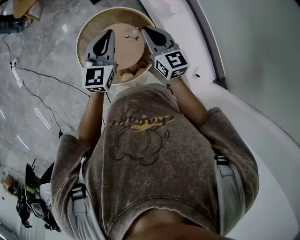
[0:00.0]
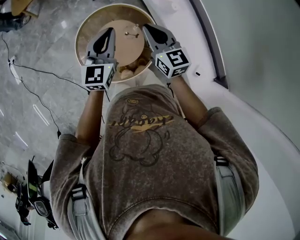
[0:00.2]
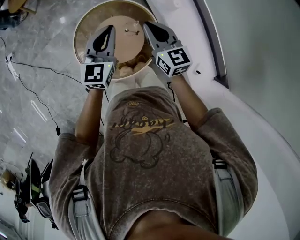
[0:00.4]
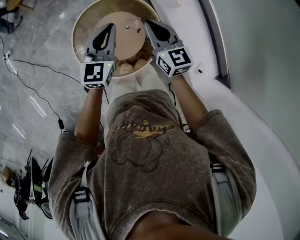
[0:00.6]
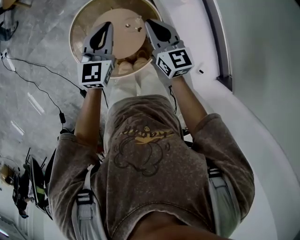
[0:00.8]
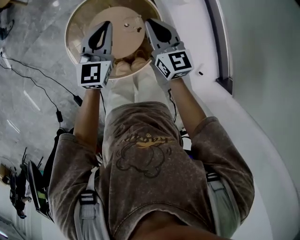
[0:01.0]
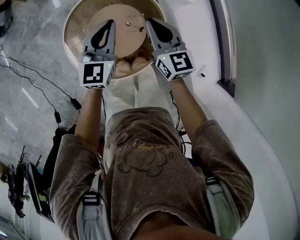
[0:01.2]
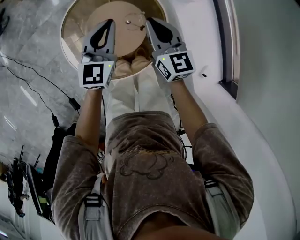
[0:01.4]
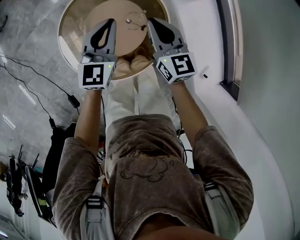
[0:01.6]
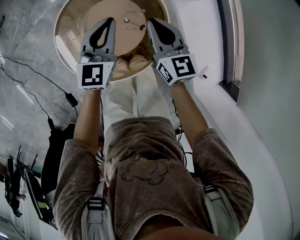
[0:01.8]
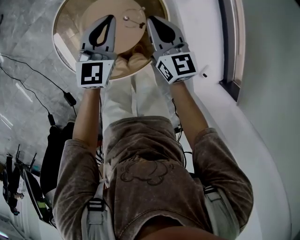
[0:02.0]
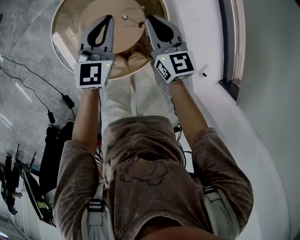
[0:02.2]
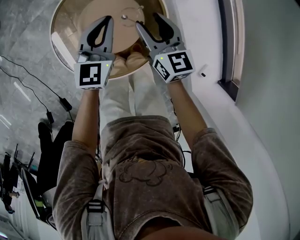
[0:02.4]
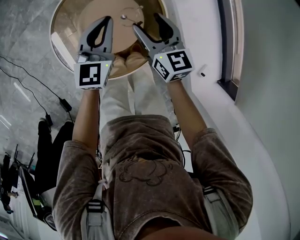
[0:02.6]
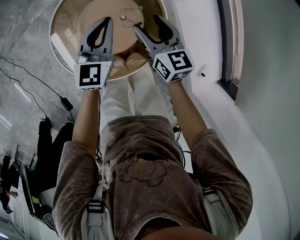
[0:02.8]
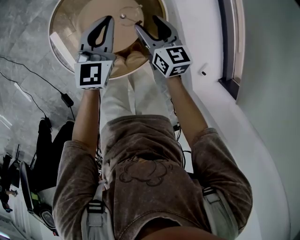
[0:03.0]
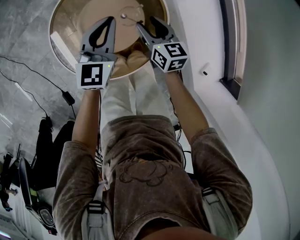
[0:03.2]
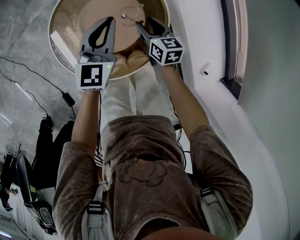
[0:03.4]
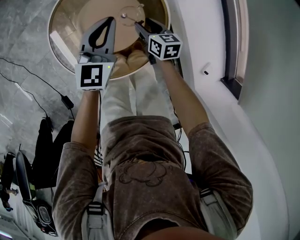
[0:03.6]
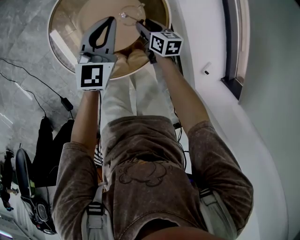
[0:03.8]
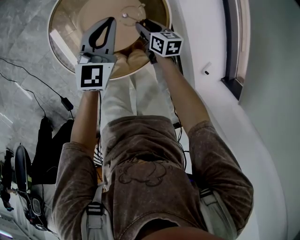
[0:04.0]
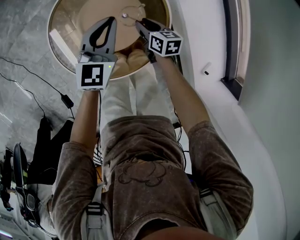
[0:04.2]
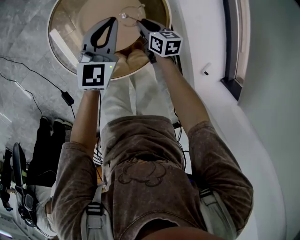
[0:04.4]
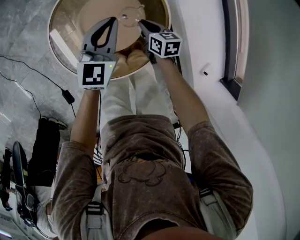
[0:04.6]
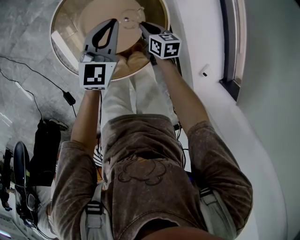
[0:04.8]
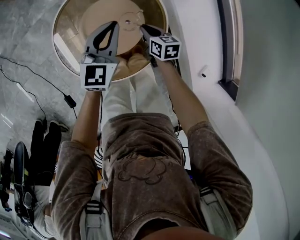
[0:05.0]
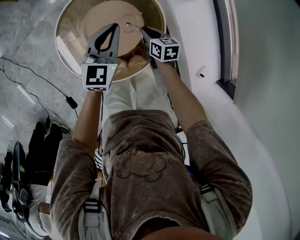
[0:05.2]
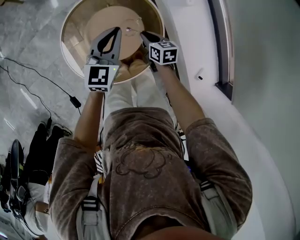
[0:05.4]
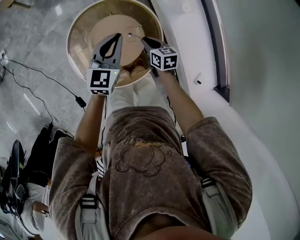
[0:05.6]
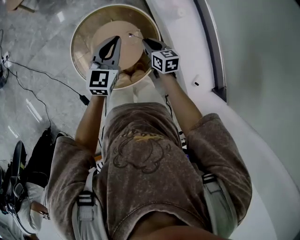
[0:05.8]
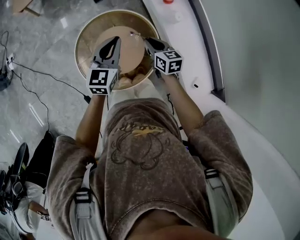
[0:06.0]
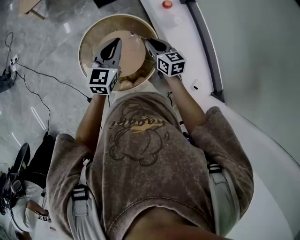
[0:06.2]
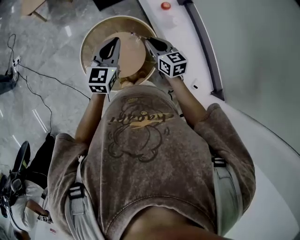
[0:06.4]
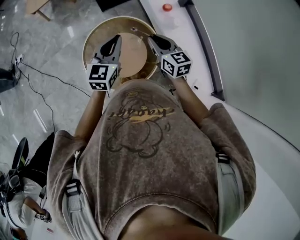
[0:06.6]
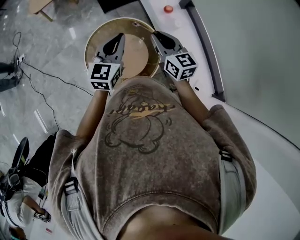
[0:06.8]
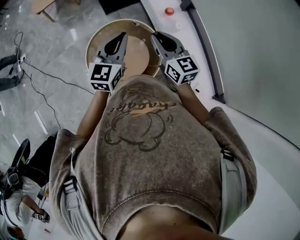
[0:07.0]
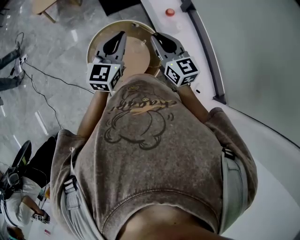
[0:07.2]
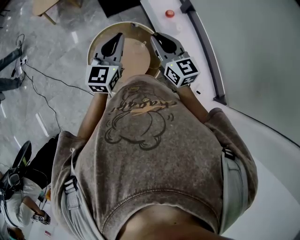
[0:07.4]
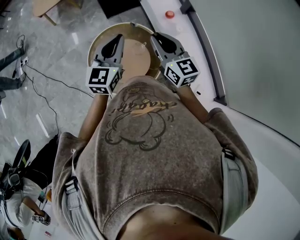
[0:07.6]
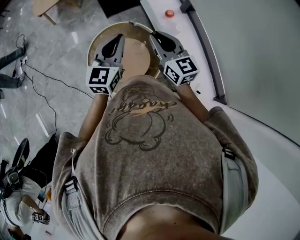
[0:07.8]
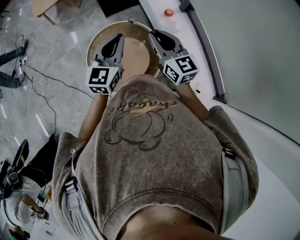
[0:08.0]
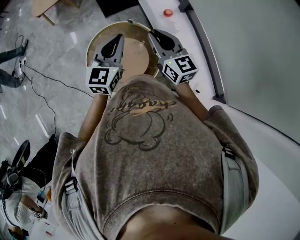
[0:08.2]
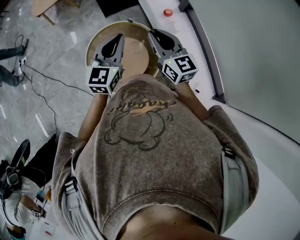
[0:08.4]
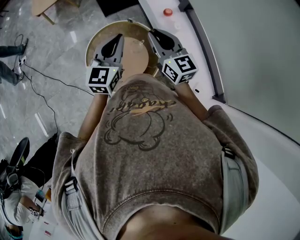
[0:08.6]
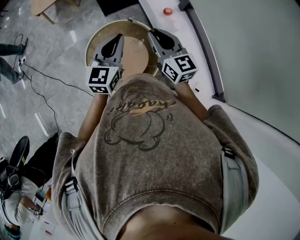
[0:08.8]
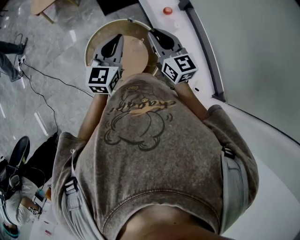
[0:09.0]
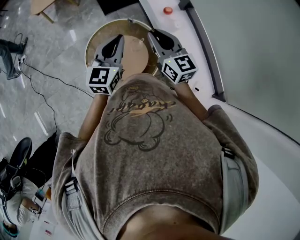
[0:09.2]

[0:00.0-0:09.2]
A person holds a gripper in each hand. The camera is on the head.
0:00.0 to 0:01.6: The grippers both shift downward by about 20 cm.
0:01.6 to 0:03.0: The right gripper travels downward by about 10 cm, and opens its fingers.
0:03.0 to 0:04.6: The right gripper moves downward, some 15 cm, swivels approximately 20 degrees, and closes its fingers.
0:04.6 to 0:06.2: The grippers both shift upward by about 25 cm. The right gripper rotates about 20 degrees.
0:06.2 to 0:07.6: The right gripper shifts about 20 cm upward, and turns by some 20 degrees; the left gripper moves upward, approximately 10 cm.
0:07.6 to 0:09.2: The grippers stay close to where they were, moving slightly.

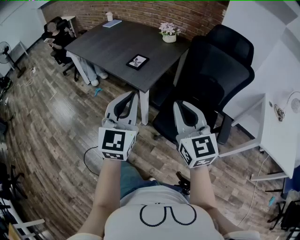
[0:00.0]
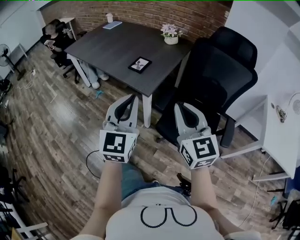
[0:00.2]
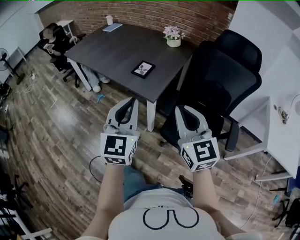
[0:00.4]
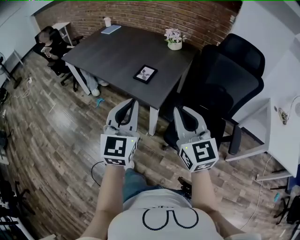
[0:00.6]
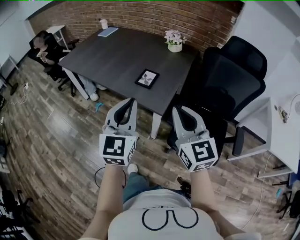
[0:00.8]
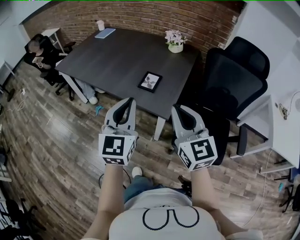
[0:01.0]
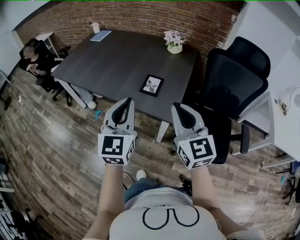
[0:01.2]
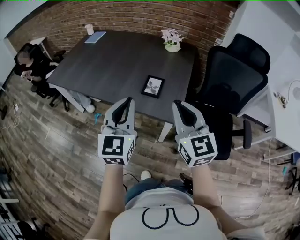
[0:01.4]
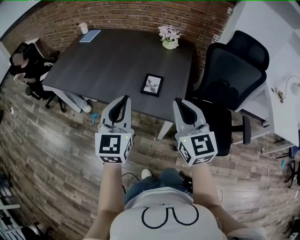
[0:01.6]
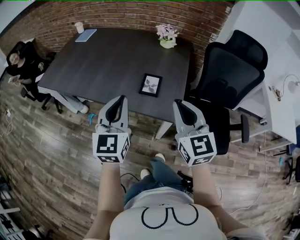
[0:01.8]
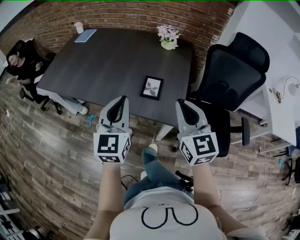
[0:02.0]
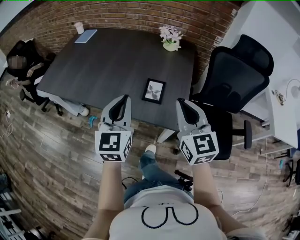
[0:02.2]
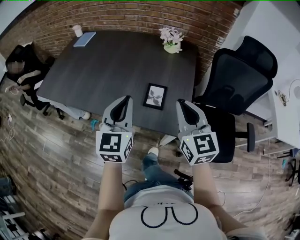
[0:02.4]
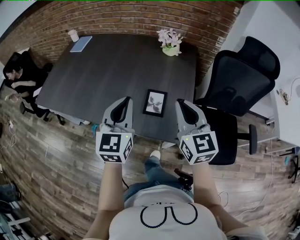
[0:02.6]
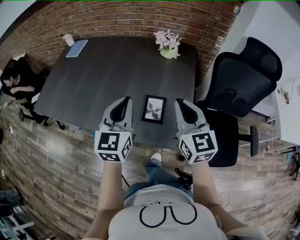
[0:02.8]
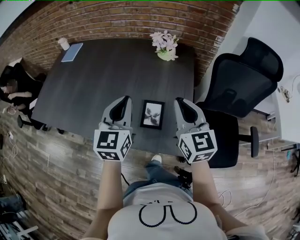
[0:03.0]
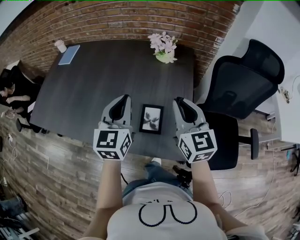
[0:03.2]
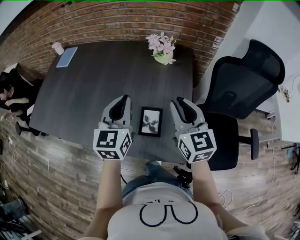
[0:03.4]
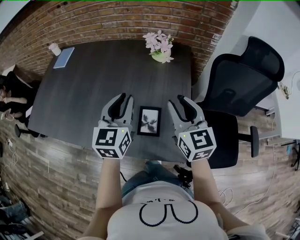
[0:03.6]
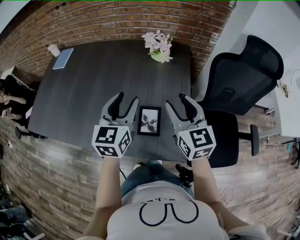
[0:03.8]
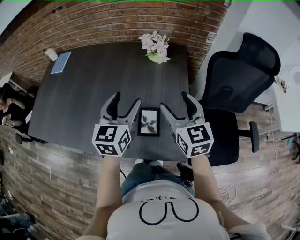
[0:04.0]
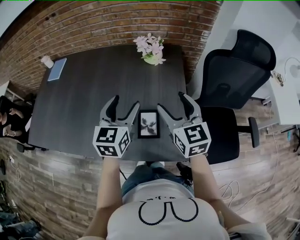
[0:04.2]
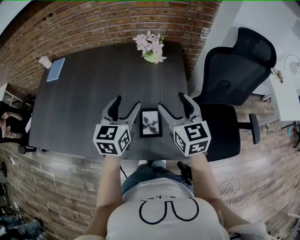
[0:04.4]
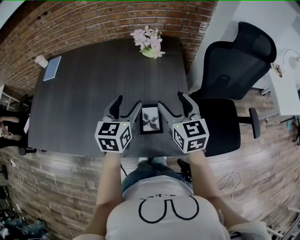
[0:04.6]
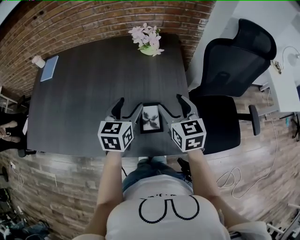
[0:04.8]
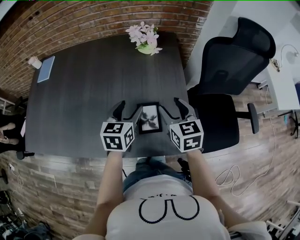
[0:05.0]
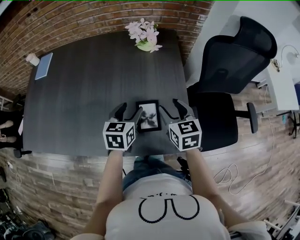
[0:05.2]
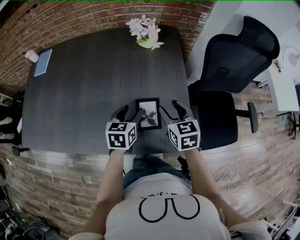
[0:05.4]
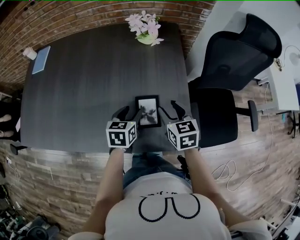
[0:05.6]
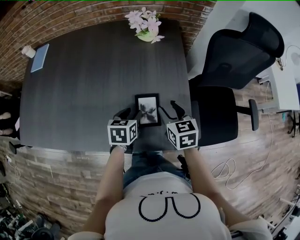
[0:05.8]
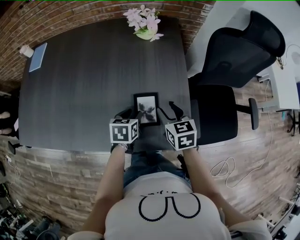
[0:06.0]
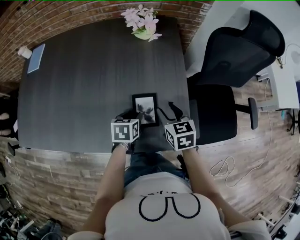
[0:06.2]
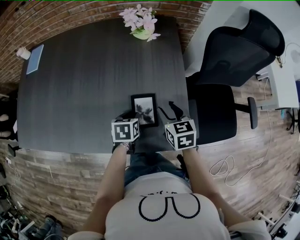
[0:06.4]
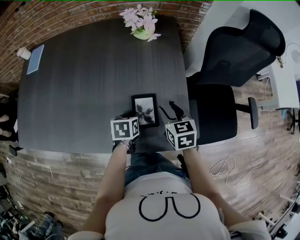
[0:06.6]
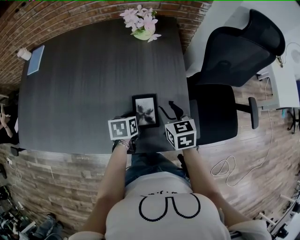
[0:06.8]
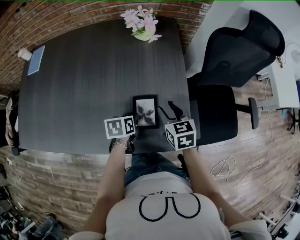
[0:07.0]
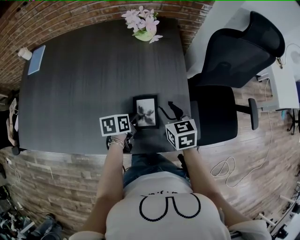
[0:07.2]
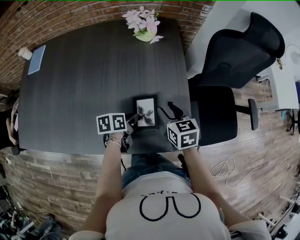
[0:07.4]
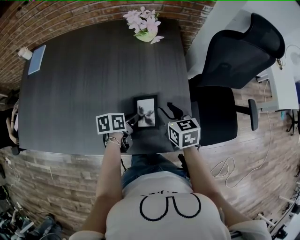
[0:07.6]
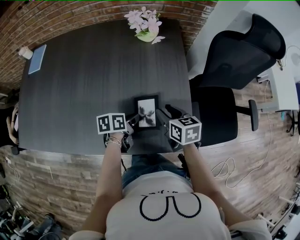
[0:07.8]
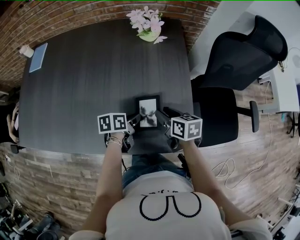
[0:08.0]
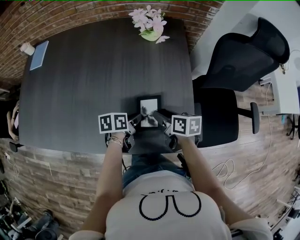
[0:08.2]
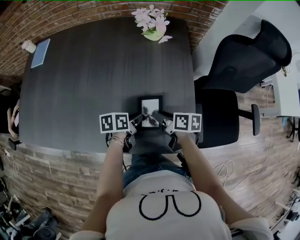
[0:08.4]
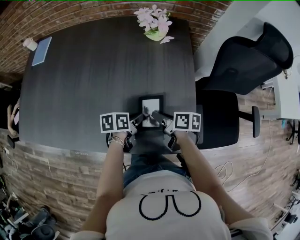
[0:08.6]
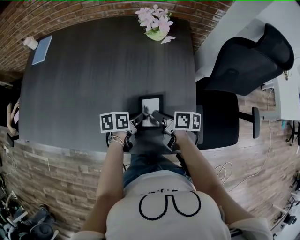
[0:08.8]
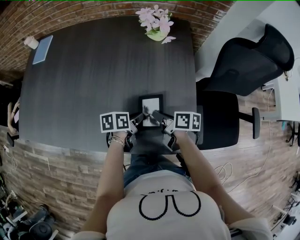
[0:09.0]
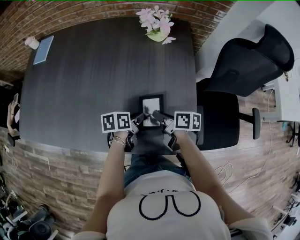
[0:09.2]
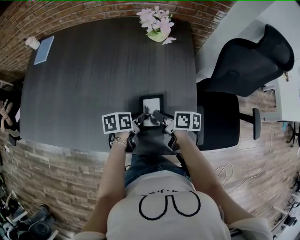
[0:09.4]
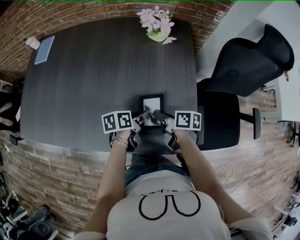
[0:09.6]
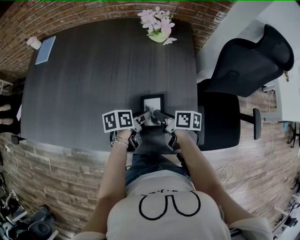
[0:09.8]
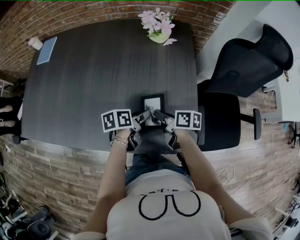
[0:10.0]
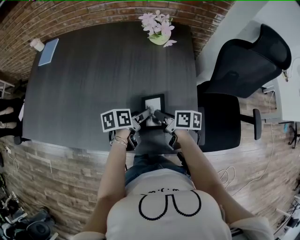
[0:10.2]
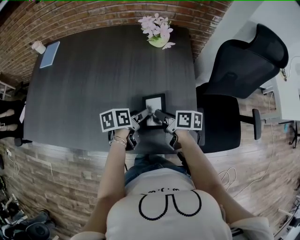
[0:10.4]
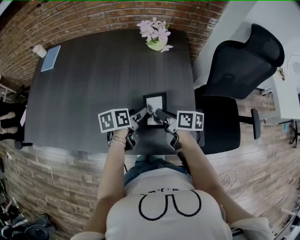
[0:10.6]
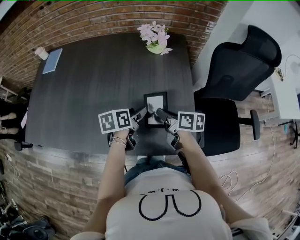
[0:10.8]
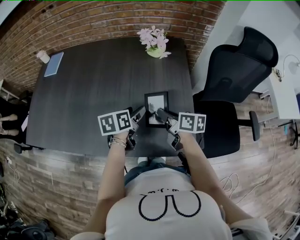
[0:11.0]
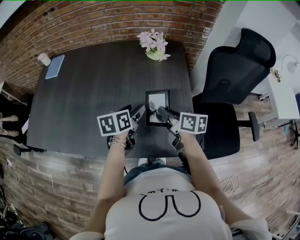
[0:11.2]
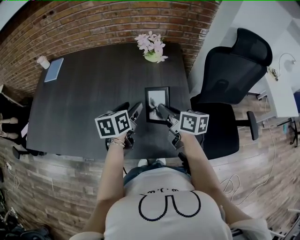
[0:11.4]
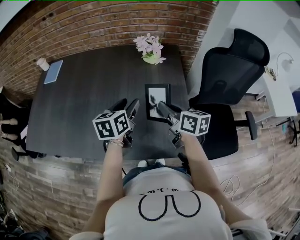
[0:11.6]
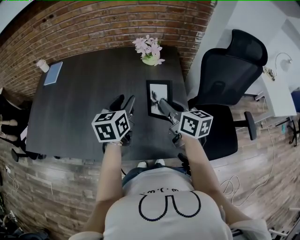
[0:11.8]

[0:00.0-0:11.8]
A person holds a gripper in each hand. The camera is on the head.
0:00.0 to 0:01.4: Both grippers travel together forward and to the left, roughly 35 cm.
0:01.4 to 0:03.0: The grippers both shift forward by roughly 25 cm.
0:03.0 to 0:04.4: The two grippers go roughly 5 cm forward. The right gripper opens its fingers; the left gripper opens its fingers.
0:04.4 to 0:06.0: The grippers both shift downward by roughly 20 cm. The right gripper swivels approximately 30 degrees, and closes, while the left gripper tips its fingers downward by approximately 30 degrees, and closes up.
0:06.0 to 0:07.4: The left gripper changes its angle by roughly 30 degrees.
0:07.4 to 0:08.8: The right gripper goes approximately 10 cm downward and to the left, rolls clockwise, seen from behind, by about 40 degrees, and closes.
0:08.8 to 0:10.4: The left gripper changes place by approximately 5 cm, and opens its fingers.
0:10.4 to 0:11.8: The grippers both shift upward by approximately 20 cm. The right gripper swivels approximately 40 degrees. Meanwhile the left gripper swivels some 40 degrees.

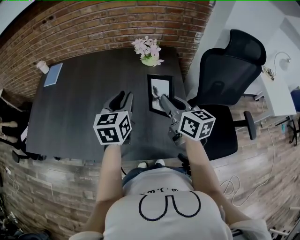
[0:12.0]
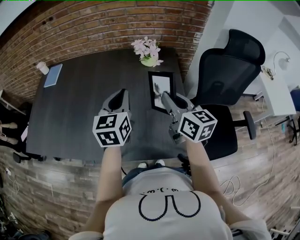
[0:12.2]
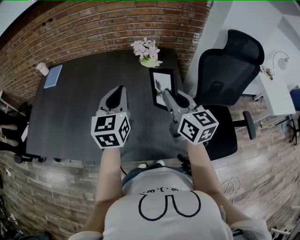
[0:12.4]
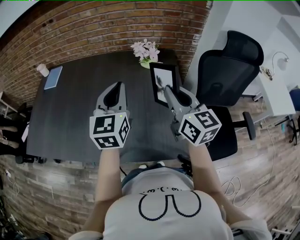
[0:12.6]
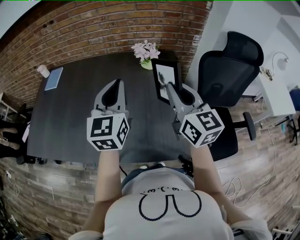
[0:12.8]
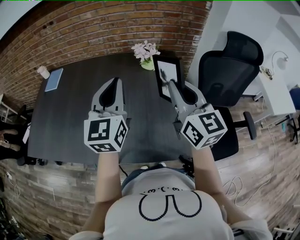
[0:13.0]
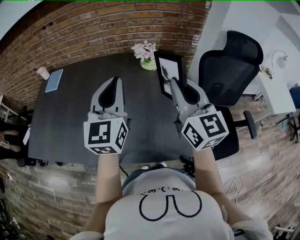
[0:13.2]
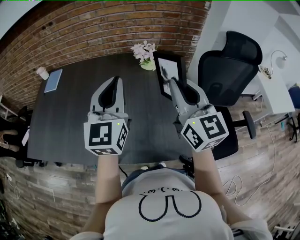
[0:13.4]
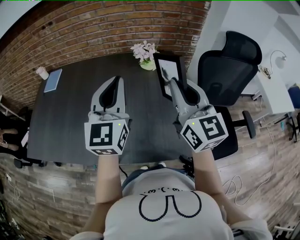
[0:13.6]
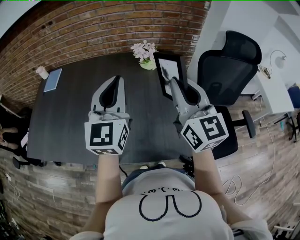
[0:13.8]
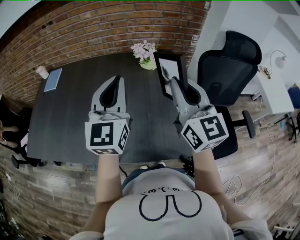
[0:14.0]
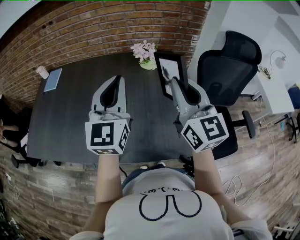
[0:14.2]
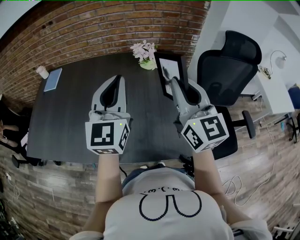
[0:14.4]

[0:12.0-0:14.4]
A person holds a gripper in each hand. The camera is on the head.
0:12.0 to 0:13.2: The two grippers go approximately 15 cm upward. The left gripper swivels approximately 30 degrees, and closes its fingers; the right gripper swivels some 30 degrees.
0:13.2 to 0:14.4: The grippers move only a little.
